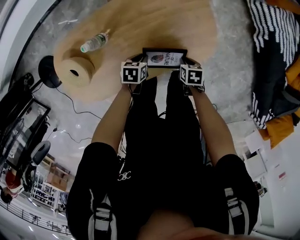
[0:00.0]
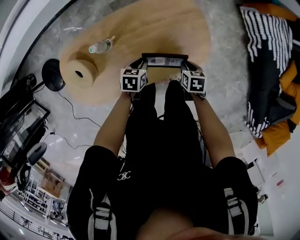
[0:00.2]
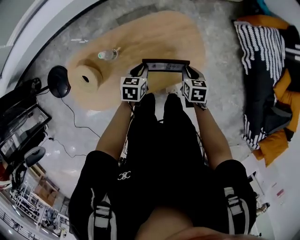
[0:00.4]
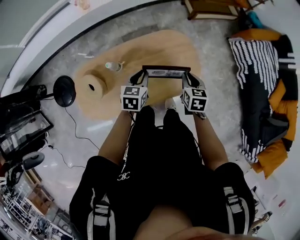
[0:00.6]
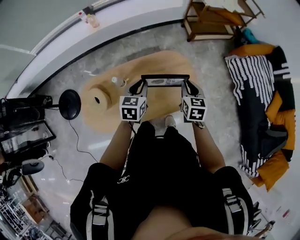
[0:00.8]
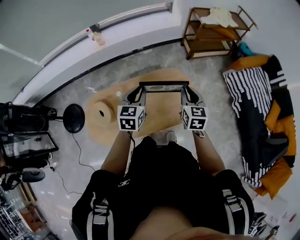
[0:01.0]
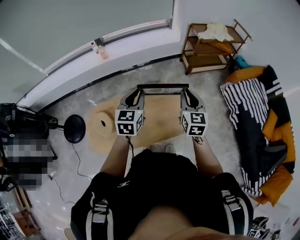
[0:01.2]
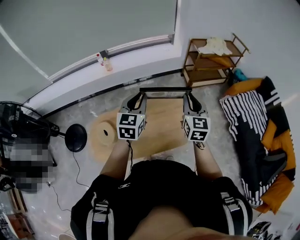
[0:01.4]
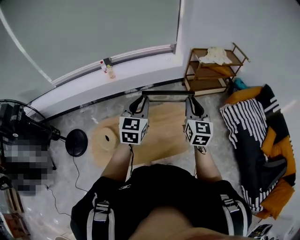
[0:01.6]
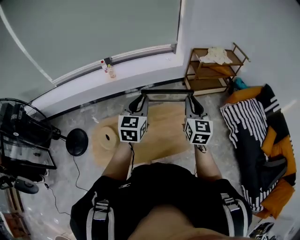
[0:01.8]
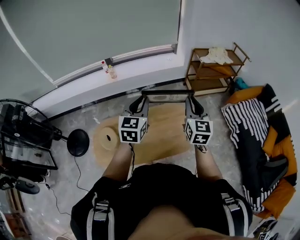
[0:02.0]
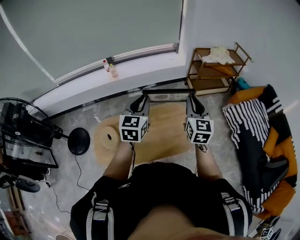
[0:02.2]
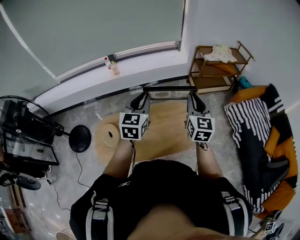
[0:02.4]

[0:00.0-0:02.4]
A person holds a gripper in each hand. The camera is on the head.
0:00.0 to 0:01.2: The grippers both shift upward by approximately 60 cm. The right gripper points its fingers approximately 60 degrees further upward, while the left gripper tips its fingers upward by about 40 degrees.
0:01.2 to 0:02.4: Both grippers travel together upward, approximately 10 cm.

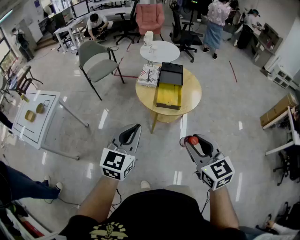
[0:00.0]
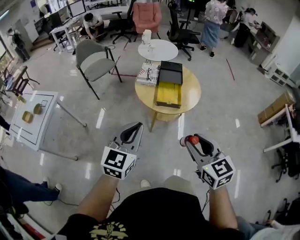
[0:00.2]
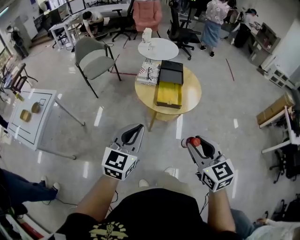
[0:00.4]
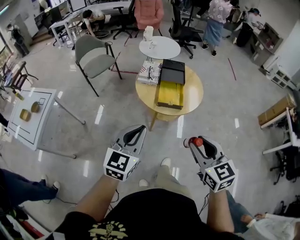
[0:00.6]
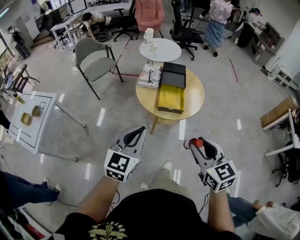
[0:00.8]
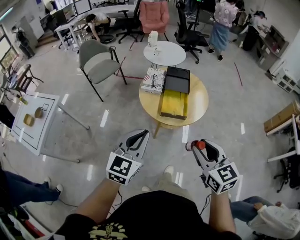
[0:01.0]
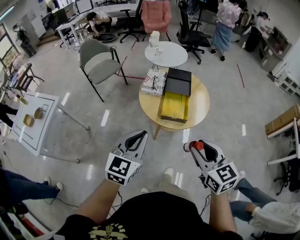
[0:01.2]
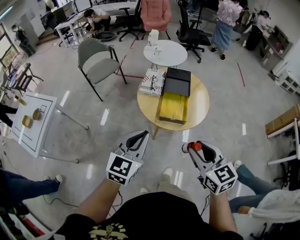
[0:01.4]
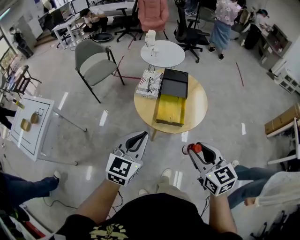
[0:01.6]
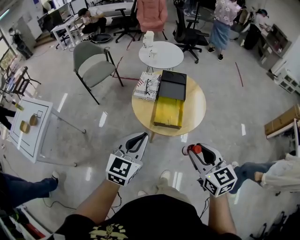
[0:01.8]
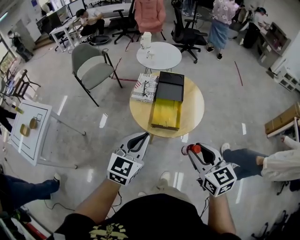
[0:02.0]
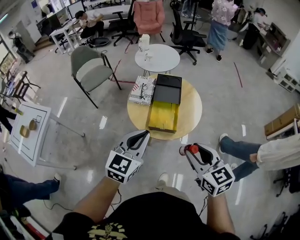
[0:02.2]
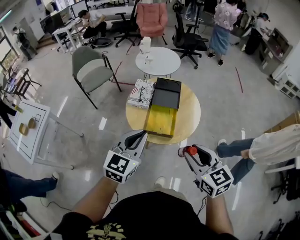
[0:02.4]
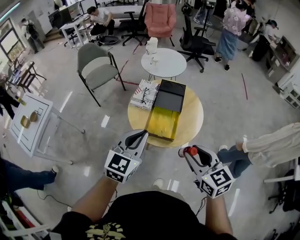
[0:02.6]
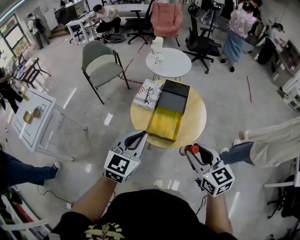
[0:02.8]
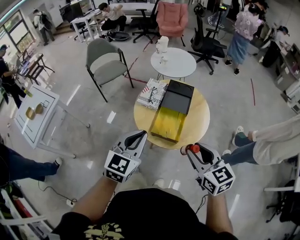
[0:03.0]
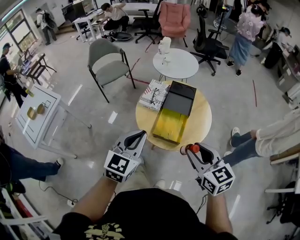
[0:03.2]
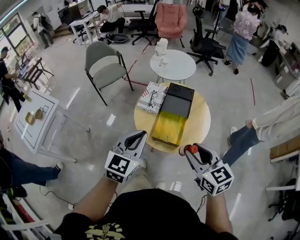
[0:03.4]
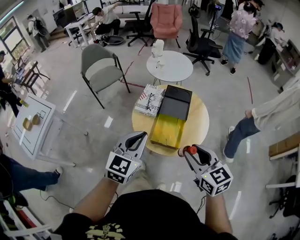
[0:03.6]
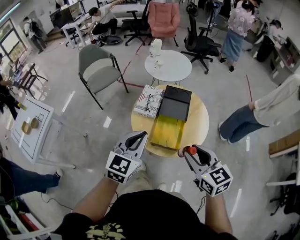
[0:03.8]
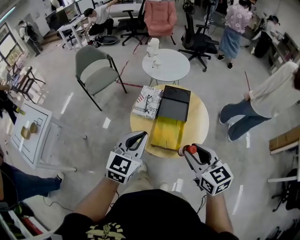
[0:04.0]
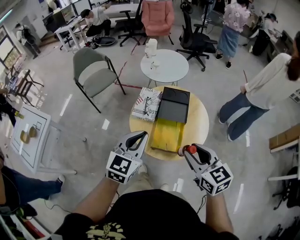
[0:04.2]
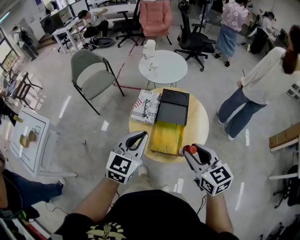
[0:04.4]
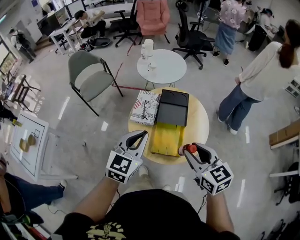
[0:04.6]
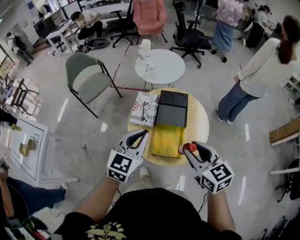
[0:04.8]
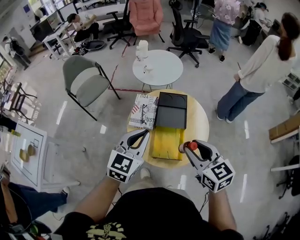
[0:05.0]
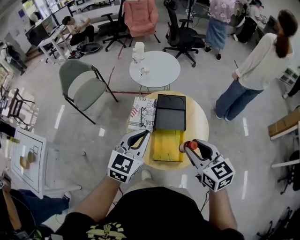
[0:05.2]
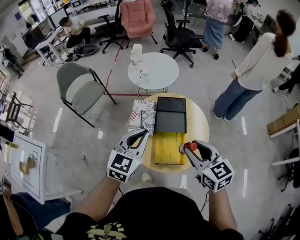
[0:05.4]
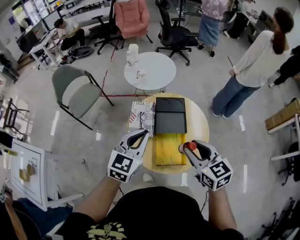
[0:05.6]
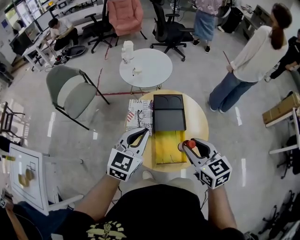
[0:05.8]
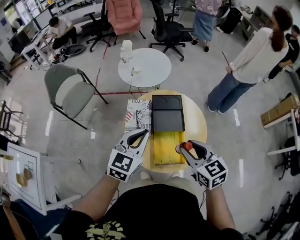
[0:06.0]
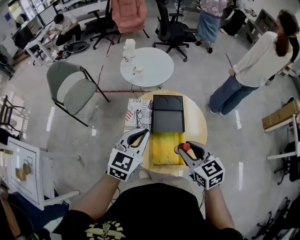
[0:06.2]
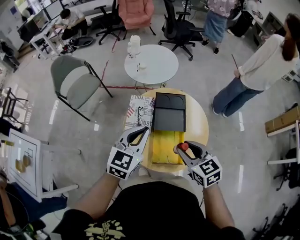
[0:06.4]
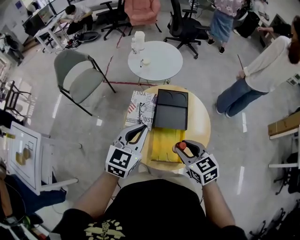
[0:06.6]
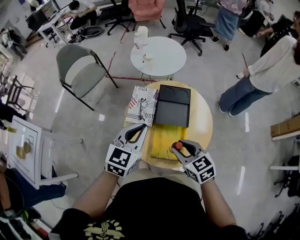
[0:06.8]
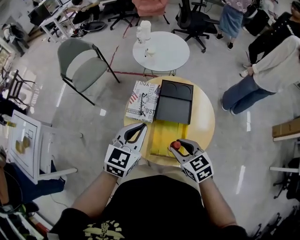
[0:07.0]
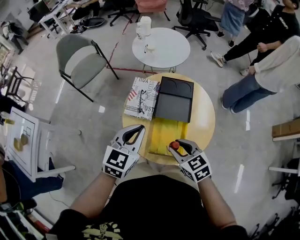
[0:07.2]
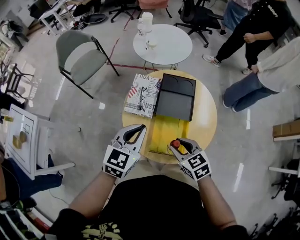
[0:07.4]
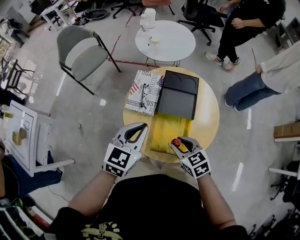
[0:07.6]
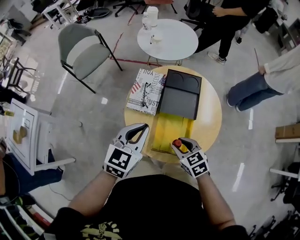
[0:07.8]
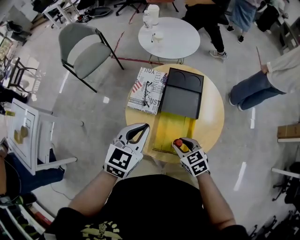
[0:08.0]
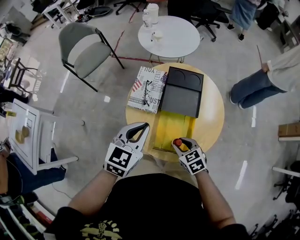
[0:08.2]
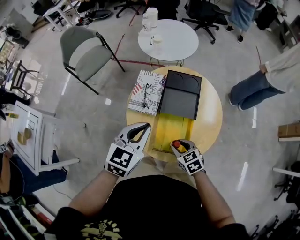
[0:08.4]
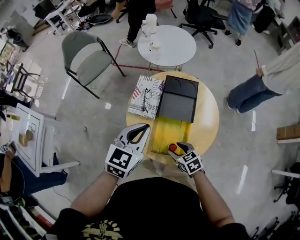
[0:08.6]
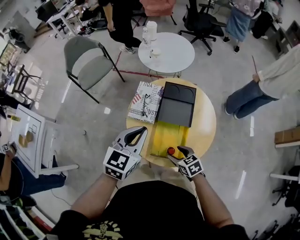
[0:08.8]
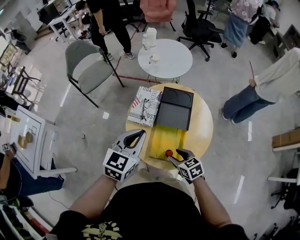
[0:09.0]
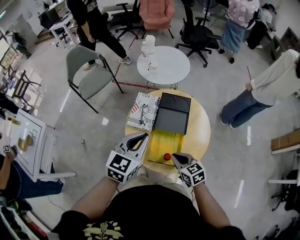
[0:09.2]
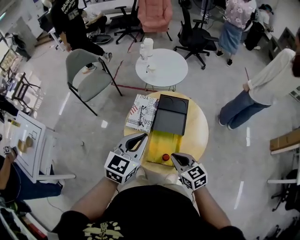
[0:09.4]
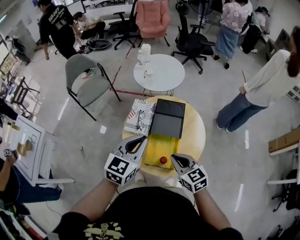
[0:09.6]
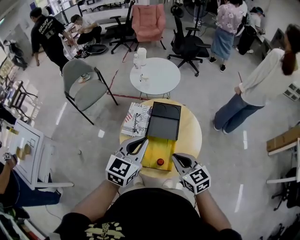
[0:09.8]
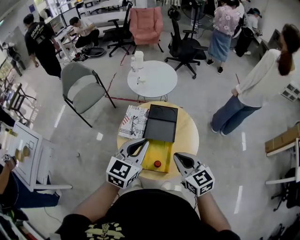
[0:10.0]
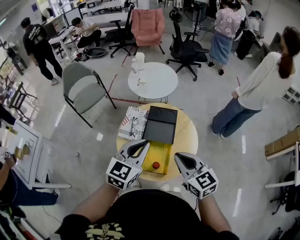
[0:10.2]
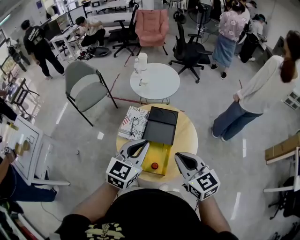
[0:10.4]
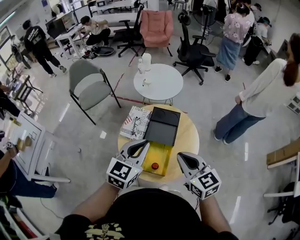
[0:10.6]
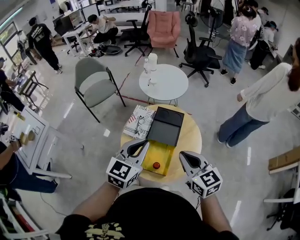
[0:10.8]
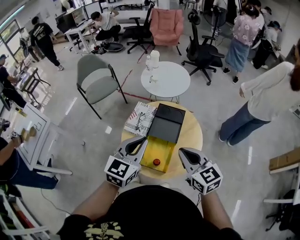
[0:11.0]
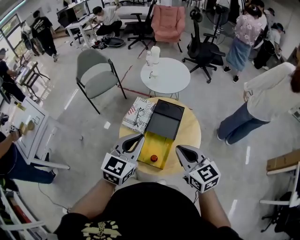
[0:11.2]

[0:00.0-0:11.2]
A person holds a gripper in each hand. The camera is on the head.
0:00.0 to 0:01.6: Both grippers travel together forward, approximately 15 cm.
0:01.6 to 0:03.2: The grippers both shift forward and to the right by some 10 cm.
0:03.2 to 0:04.8: The two grippers go about 15 cm forward.
0:04.8 to 0:06.4: The left gripper travels forward by roughly 10 cm. Meanwhile the right gripper travels forward and downward by roughly 10 cm.
0:06.4 to 0:08.0: The right gripper is displaced downward by about 20 cm. The left gripper heads downward, covering roughly 10 cm.
0:08.0 to 0:09.6: The two grippers go approximately 15 cm upward. The right gripper closes.
0:09.6 to 0:11.2: The right gripper travels upward and to the right by about 15 cm. The left gripper moves roughly 5 cm.

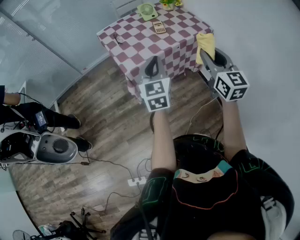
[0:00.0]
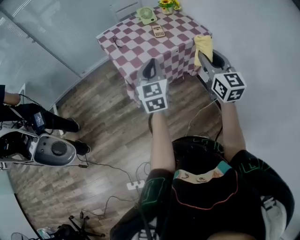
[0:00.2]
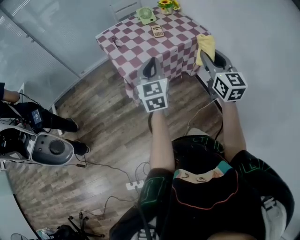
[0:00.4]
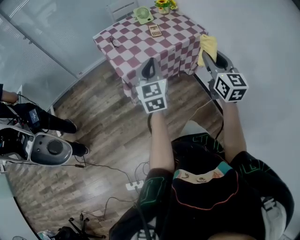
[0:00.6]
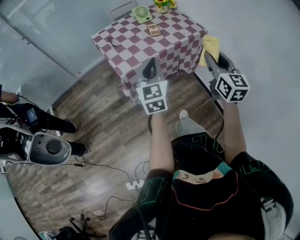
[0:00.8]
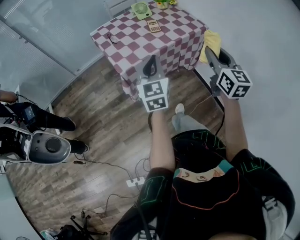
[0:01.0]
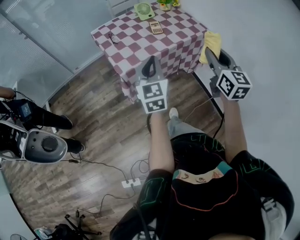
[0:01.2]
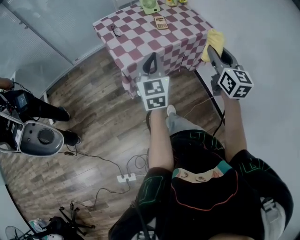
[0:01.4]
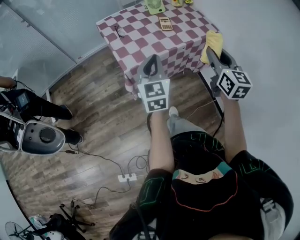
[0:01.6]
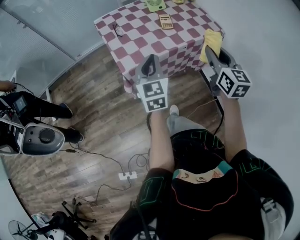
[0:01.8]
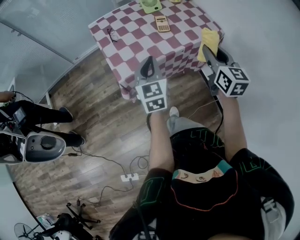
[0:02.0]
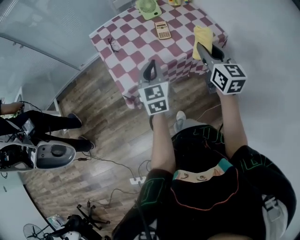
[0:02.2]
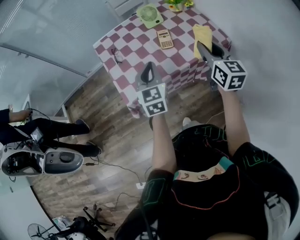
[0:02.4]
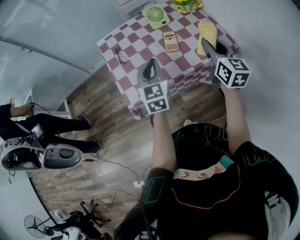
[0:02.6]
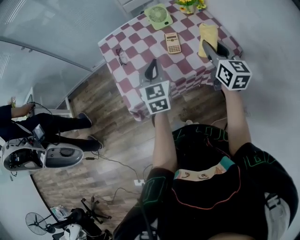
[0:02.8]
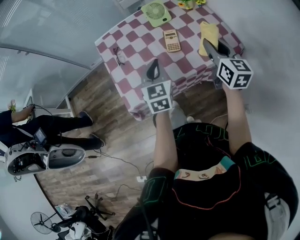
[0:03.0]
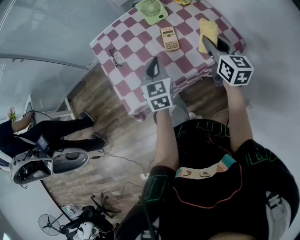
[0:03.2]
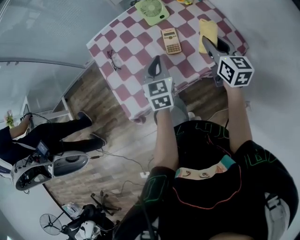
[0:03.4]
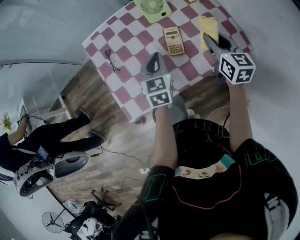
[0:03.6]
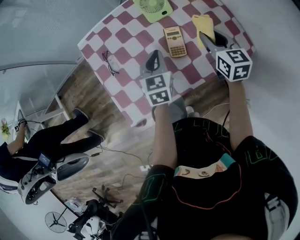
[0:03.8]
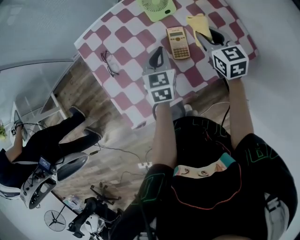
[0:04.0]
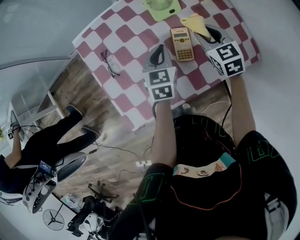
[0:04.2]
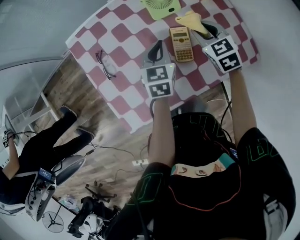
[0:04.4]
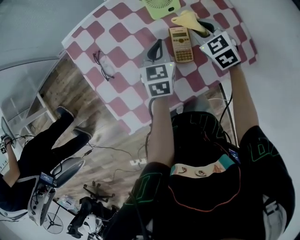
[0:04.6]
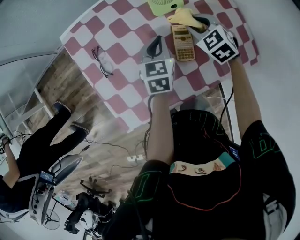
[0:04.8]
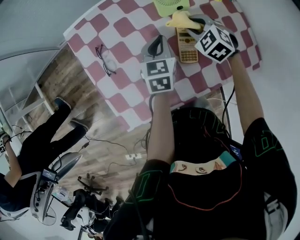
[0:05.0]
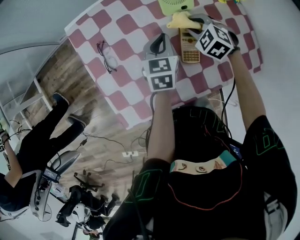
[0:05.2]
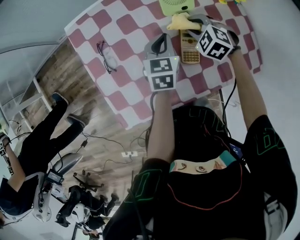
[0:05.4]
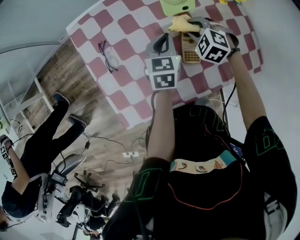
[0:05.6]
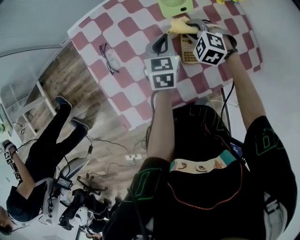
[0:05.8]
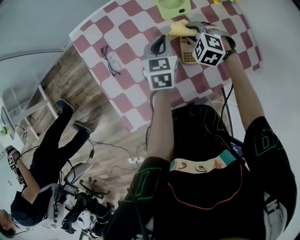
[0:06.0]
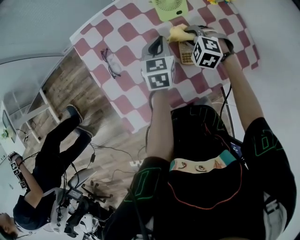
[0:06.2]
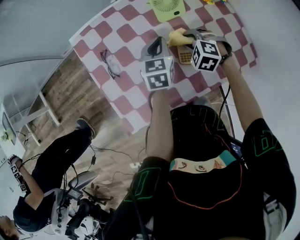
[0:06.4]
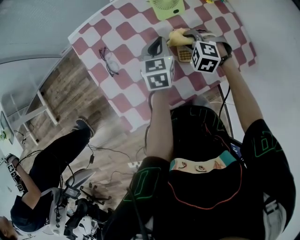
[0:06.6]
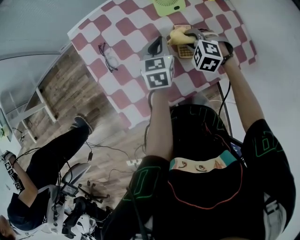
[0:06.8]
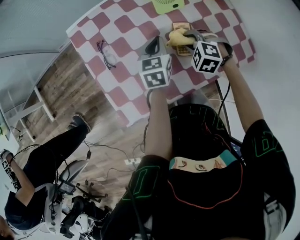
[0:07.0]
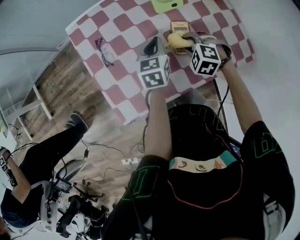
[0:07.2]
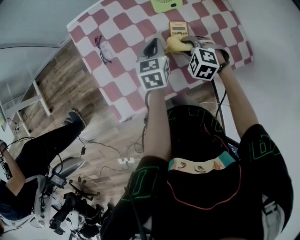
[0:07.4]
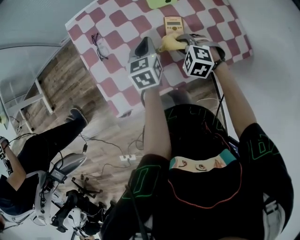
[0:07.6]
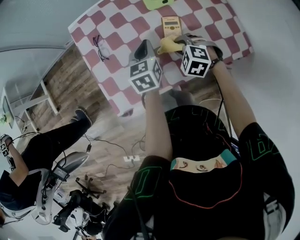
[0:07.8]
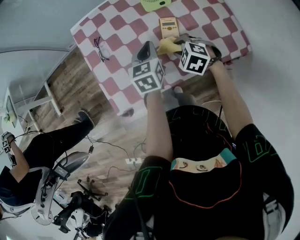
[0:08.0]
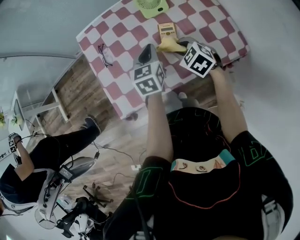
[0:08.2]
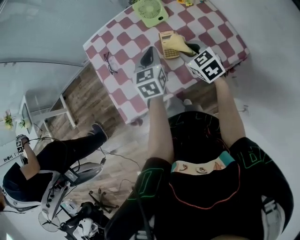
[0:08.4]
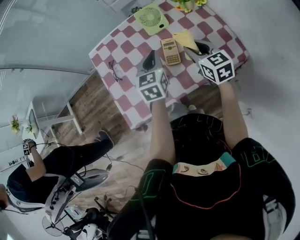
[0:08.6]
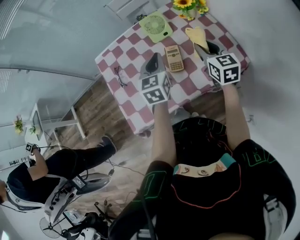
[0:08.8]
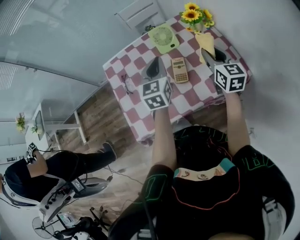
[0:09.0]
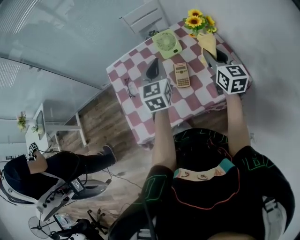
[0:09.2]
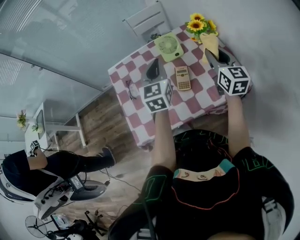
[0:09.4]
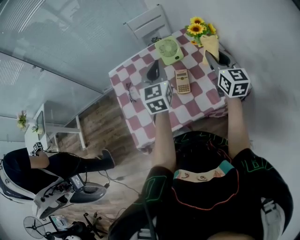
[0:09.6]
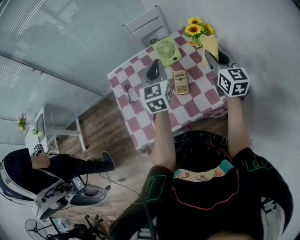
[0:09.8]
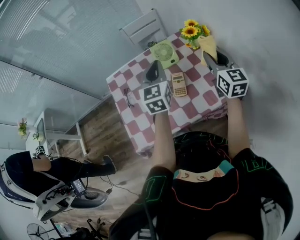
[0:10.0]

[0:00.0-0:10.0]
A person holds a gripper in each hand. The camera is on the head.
0:00.0 to 0:01.4: The right gripper moves approximately 5 cm.
0:01.4 to 0:02.8: The two grippers go some 30 cm forward.
0:02.8 to 0:04.2: Both grippers move forward and downward, approximately 25 cm. The left gripper turns by some 20 degrees; the right gripper changes its angle by about 40 degrees.
0:04.2 to 0:05.8: The left gripper ends up about 5 cm from where it was. Meanwhile the right gripper heads downward and to the left, covering some 10 cm, and rotates around the line of its fingers by about 40 degrees, counterclockwise from behind.
0:05.8 to 0:07.2: The right gripper travels backward by roughly 10 cm; the left gripper ends up approximately 5 cm from where it was.
0:07.2 to 0:08.6: The left gripper is displaced upward and backward by about 10 cm. Meanwhile the right gripper shifts some 15 cm upward and to the right, and tips its fingers upward by about 40 degrees.
0:08.6 to 0:10.0: The right gripper shifts approximately 15 cm upward and to the right, and changes its angle by roughly 20 degrees. Meanwhile the left gripper is displaced upward by approximately 10 cm.
